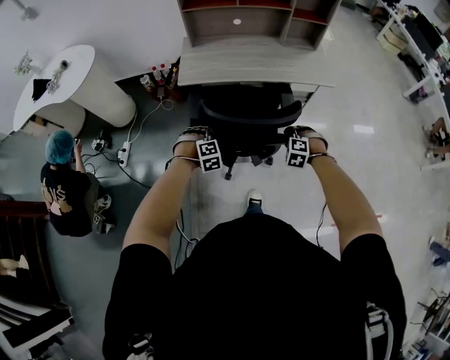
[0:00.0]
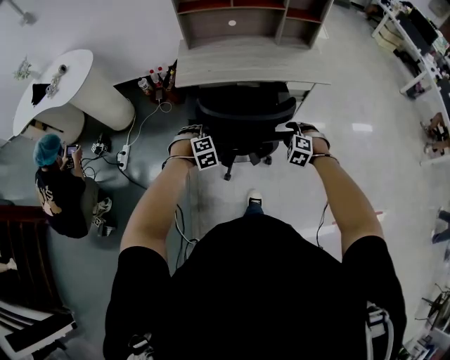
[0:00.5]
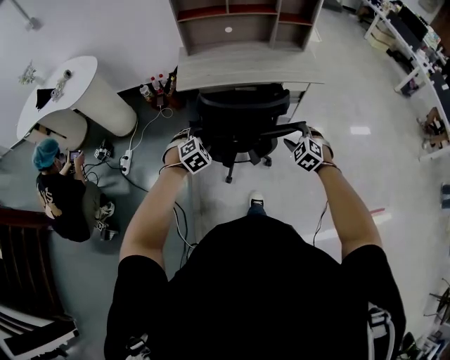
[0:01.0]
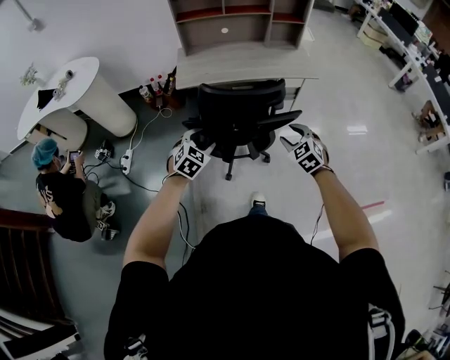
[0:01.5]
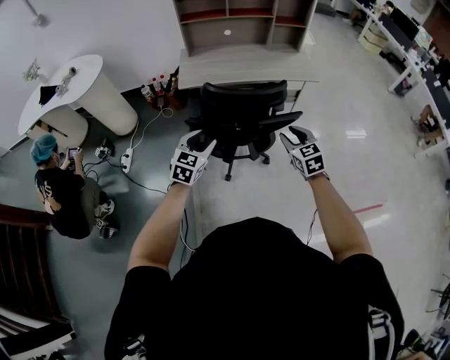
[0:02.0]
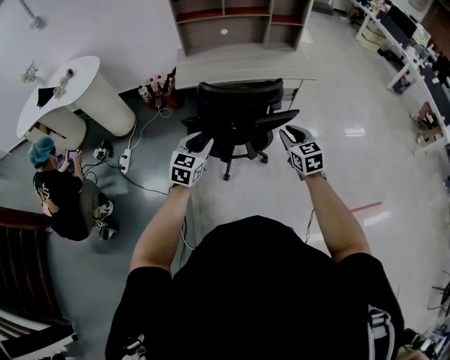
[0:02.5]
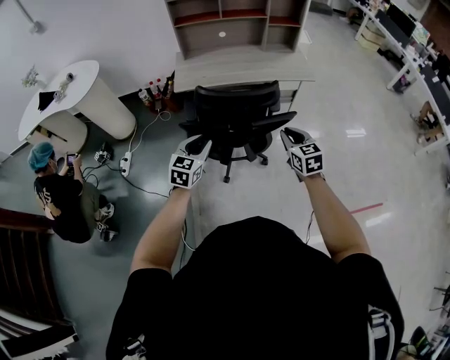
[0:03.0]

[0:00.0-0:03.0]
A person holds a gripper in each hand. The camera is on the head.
0:00.0 to 0:01.5: Both grippers move backward and upward, roughly 20 cm. The right gripper rotates about 50 degrees. Meanwhile the left gripper changes its angle by some 40 degrees, and opens its fingers.
0:01.5 to 0:03.0: The left gripper travels upward by some 5 cm, rotates some 30 degrees, and closes up. Meanwhile the right gripper rotates some 30 degrees, and closes.

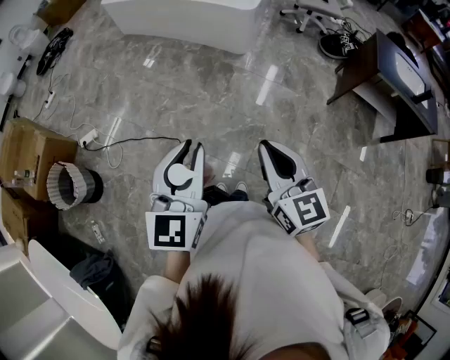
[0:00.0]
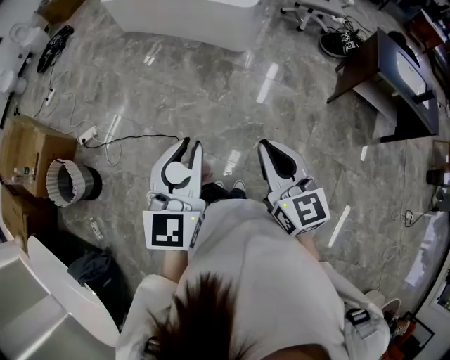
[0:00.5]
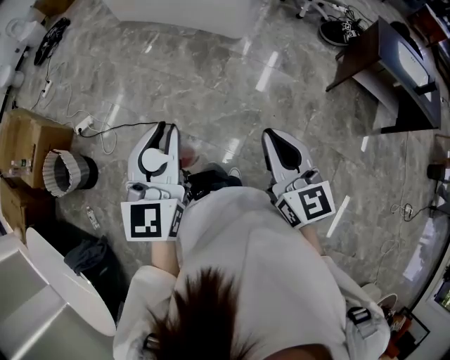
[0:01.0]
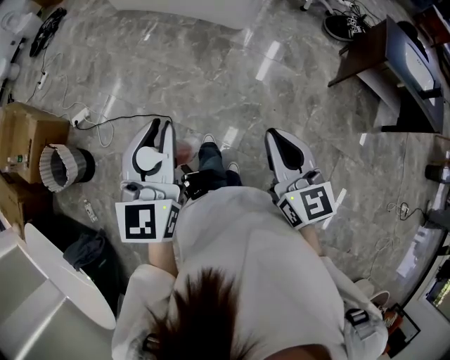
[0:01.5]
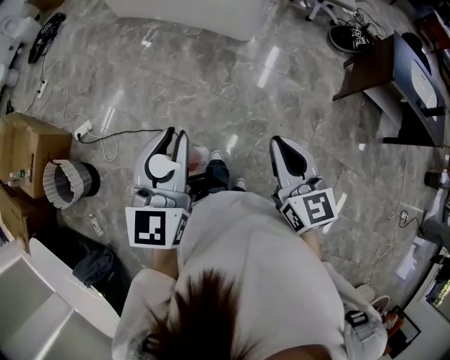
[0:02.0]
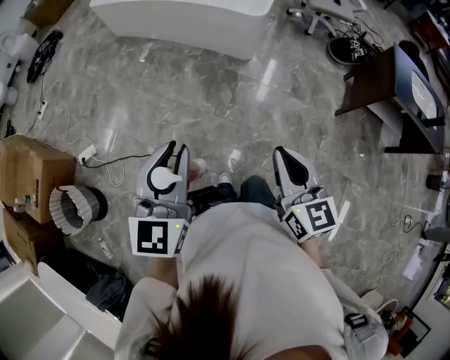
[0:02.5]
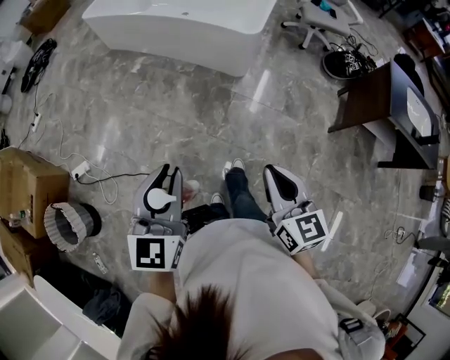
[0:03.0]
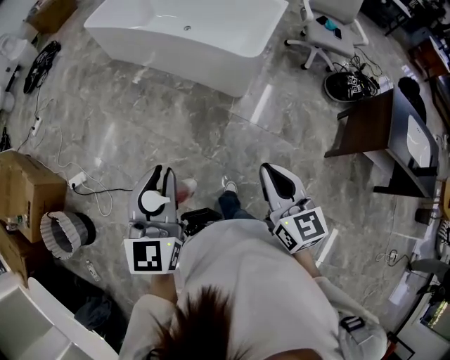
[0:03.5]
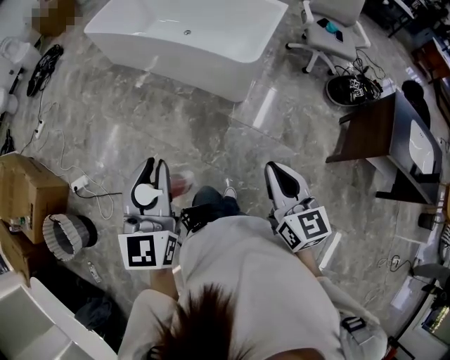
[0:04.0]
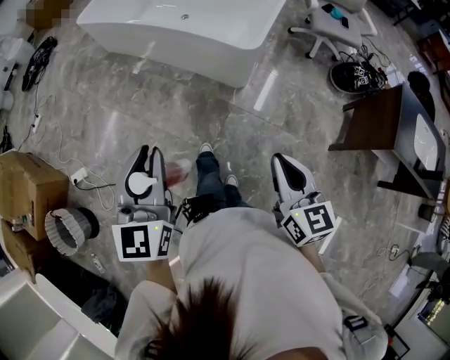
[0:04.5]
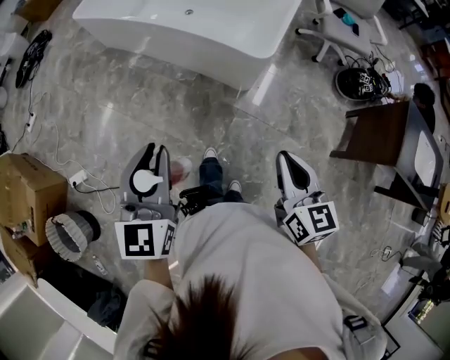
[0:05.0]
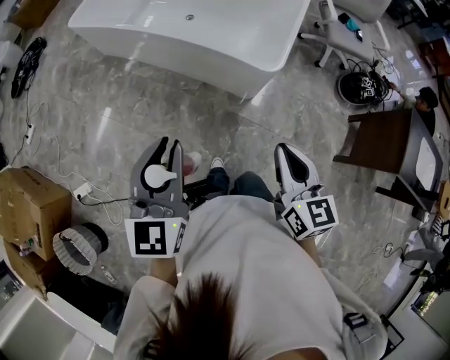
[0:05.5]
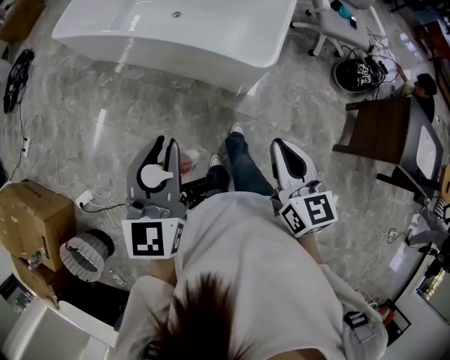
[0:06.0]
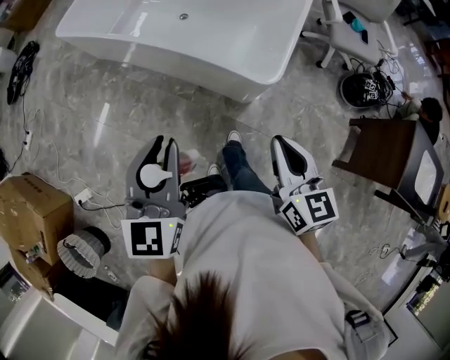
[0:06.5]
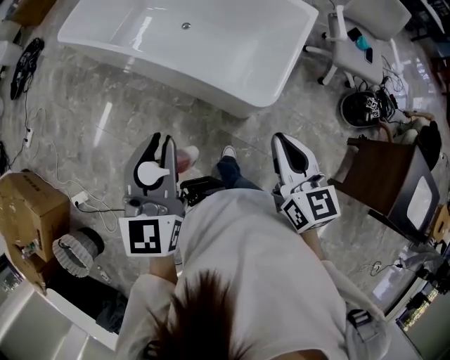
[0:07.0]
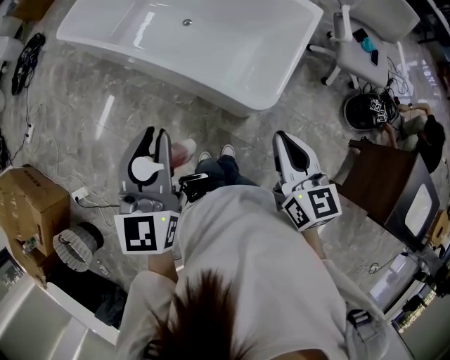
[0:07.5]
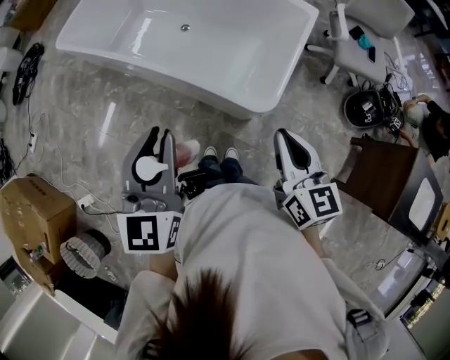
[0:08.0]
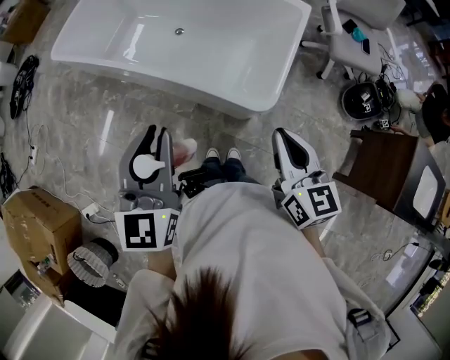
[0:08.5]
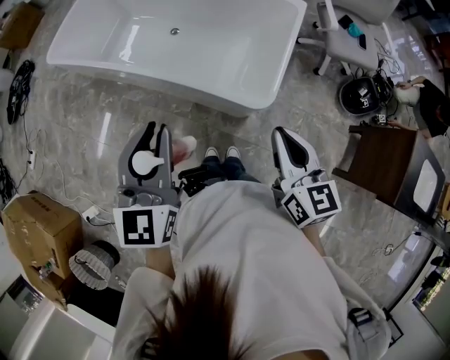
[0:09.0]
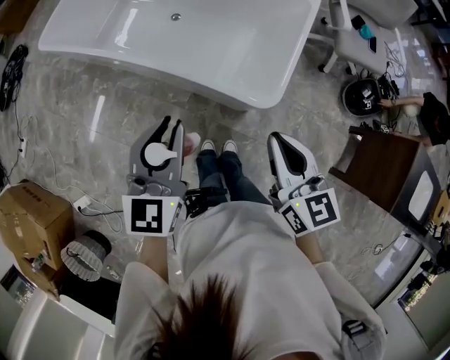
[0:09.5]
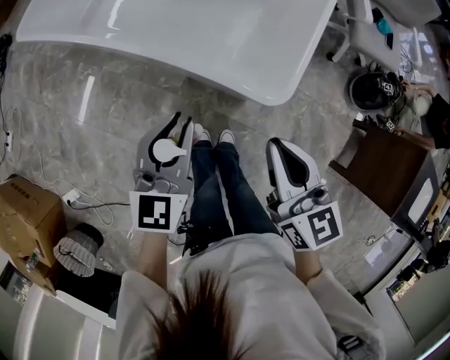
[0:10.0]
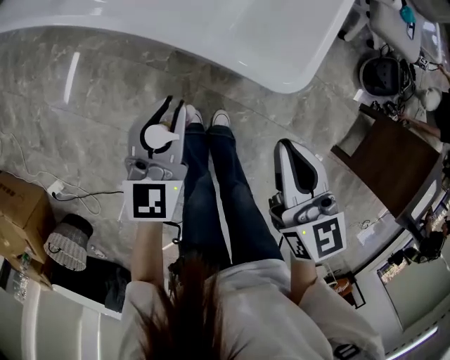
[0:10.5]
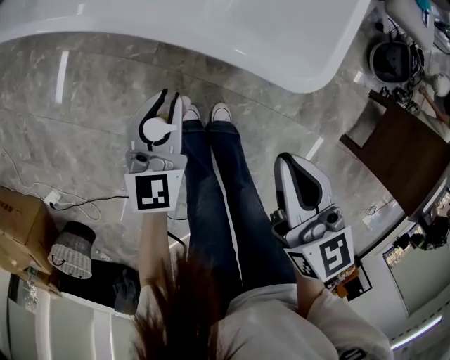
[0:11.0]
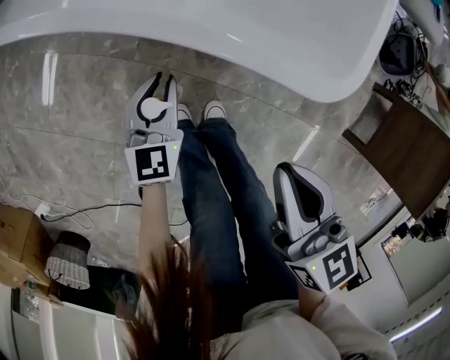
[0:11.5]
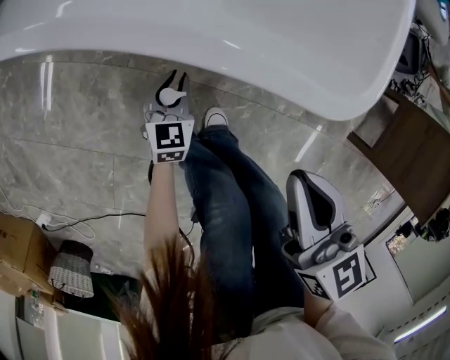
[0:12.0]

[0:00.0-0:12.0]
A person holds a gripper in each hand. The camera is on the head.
0:00.0 to 0:02.0: The grippers both shift forward by about 10 cm.
0:02.0 to 0:04.0: The two grippers go about 30 cm forward.
0:04.0 to 0:06.0: The two grippers go some 30 cm forward.
0:06.0 to 0:08.0: The two grippers go about 25 cm forward and to the right.
0:08.0 to 0:10.0: The left gripper moves downward and forward, approximately 20 cm, while the right gripper travels downward and to the left by about 10 cm.
0:10.0 to 0:12.0: The right gripper goes about 30 cm downward; the left gripper shifts approximately 60 cm downward, and swivels about 20 degrees.

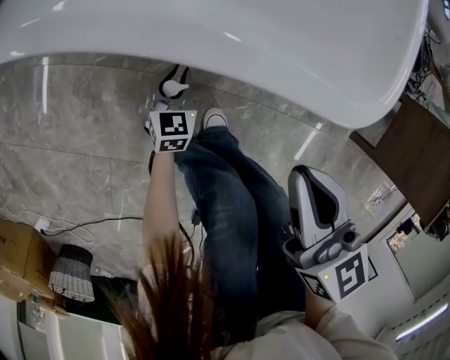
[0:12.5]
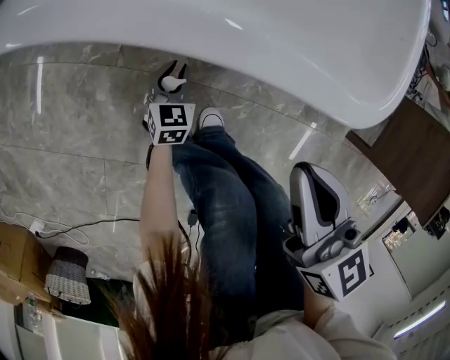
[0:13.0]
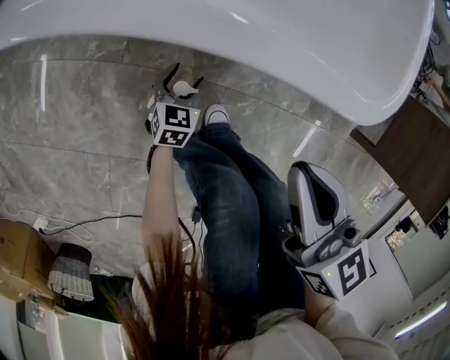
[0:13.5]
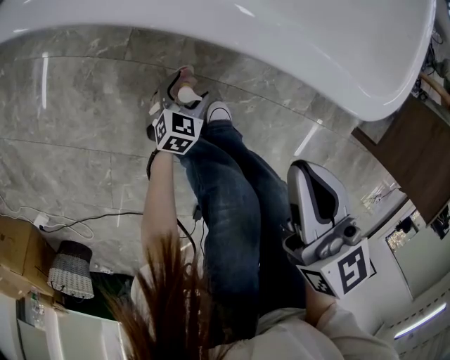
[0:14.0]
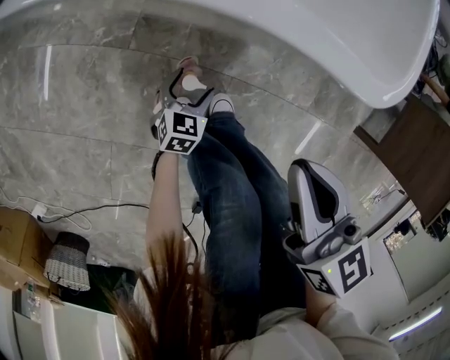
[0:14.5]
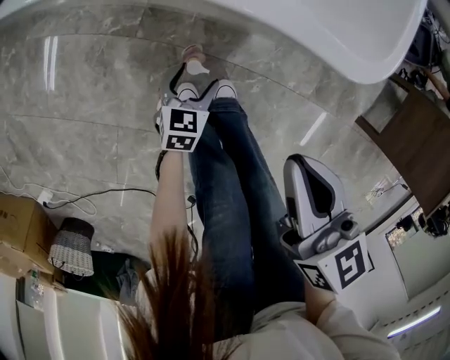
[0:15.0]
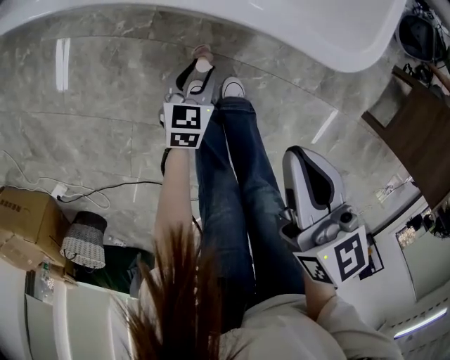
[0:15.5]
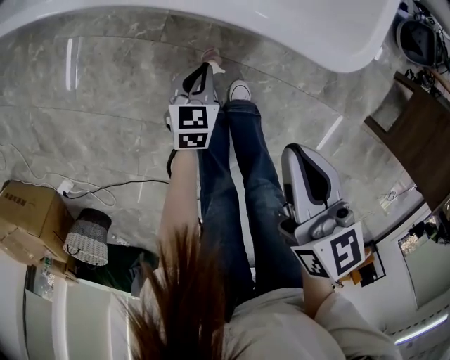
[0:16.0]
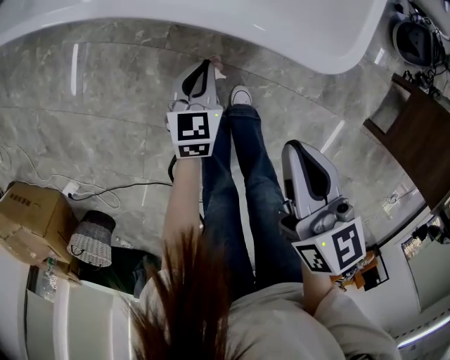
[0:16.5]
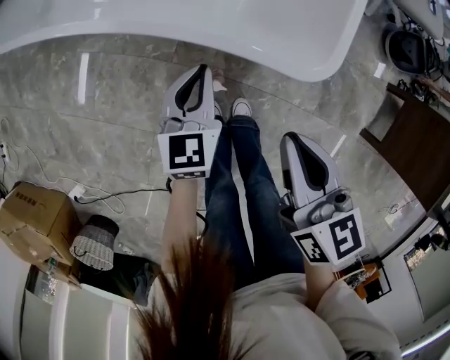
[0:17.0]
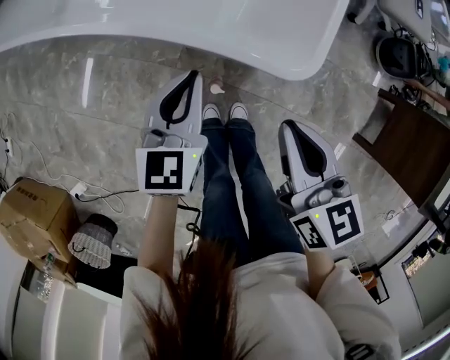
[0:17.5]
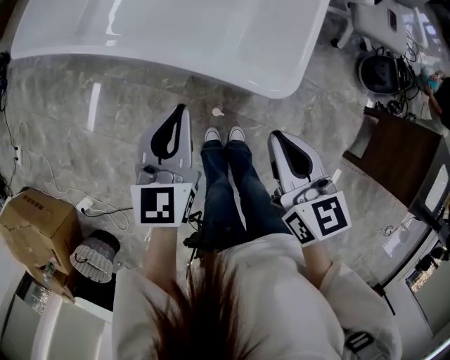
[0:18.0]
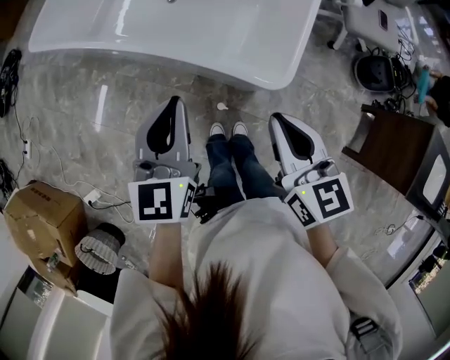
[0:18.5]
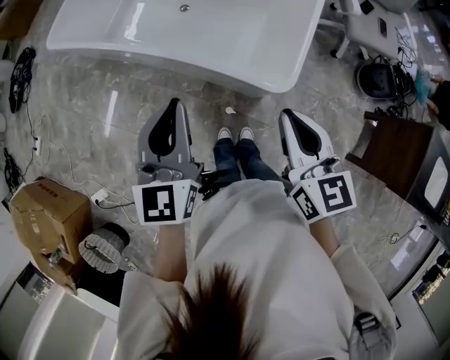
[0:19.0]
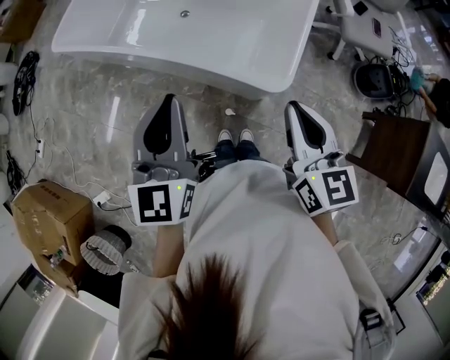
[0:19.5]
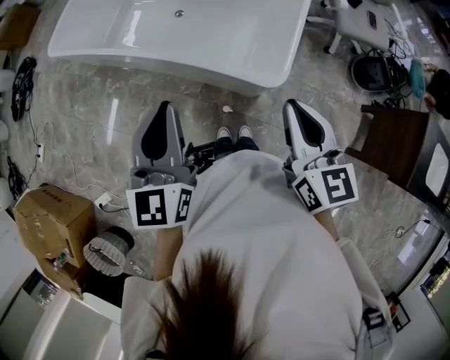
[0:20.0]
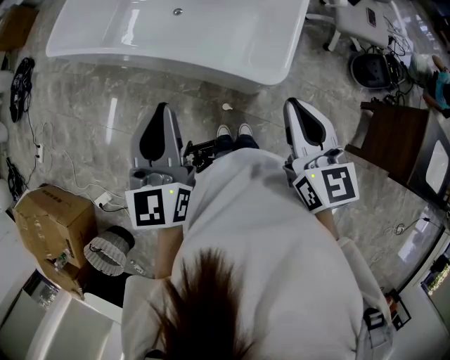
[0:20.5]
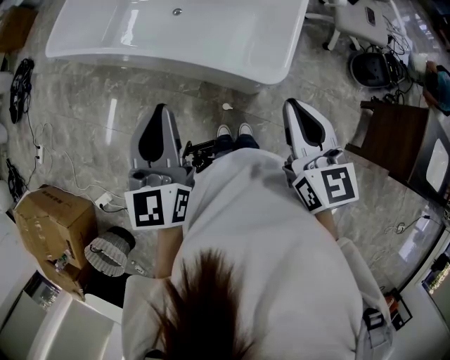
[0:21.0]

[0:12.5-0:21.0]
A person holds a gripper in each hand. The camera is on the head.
0:12.5 to 0:14.5: The left gripper moves backward, about 10 cm, and opens.
0:14.5 to 0:16.5: The left gripper is displaced upward by roughly 25 cm, and closes. The right gripper shifts roughly 10 cm upward.
0:16.5 to 0:19.0: The right gripper heads upward, covering about 35 cm, and swivels approximately 30 degrees; the left gripper travels upward by roughly 60 cm, and changes its angle by roughly 30 degrees.
0:19.0 to 0:21.0: The grippers make only small movements.

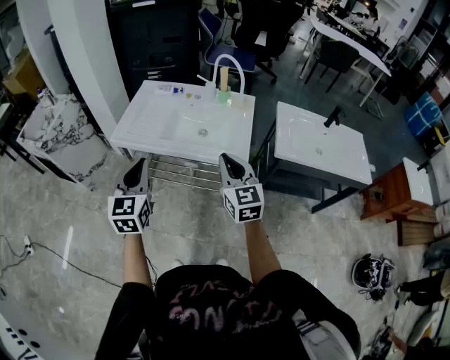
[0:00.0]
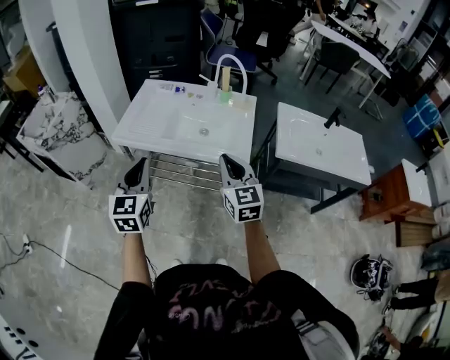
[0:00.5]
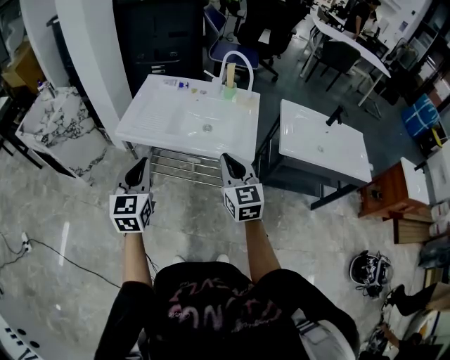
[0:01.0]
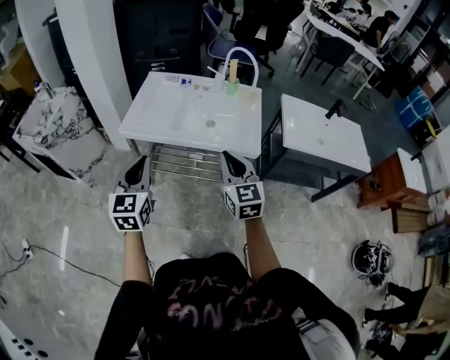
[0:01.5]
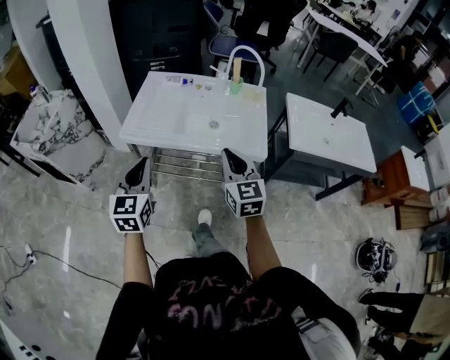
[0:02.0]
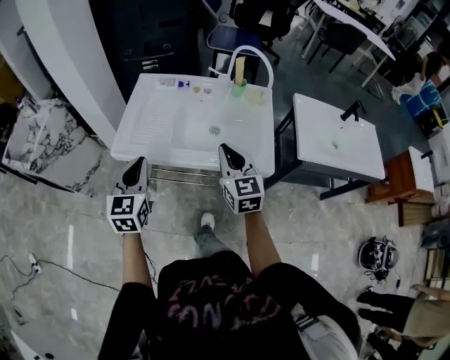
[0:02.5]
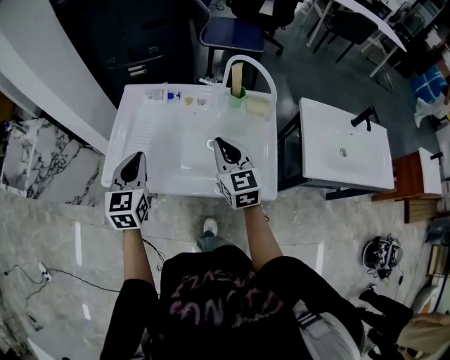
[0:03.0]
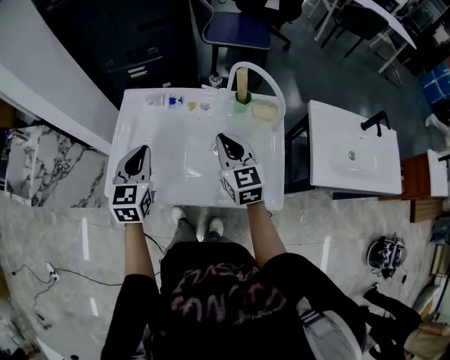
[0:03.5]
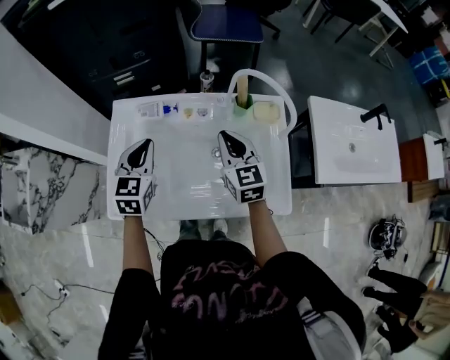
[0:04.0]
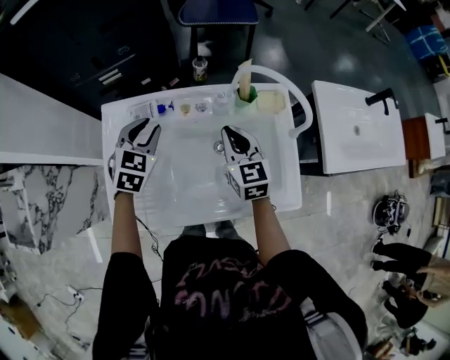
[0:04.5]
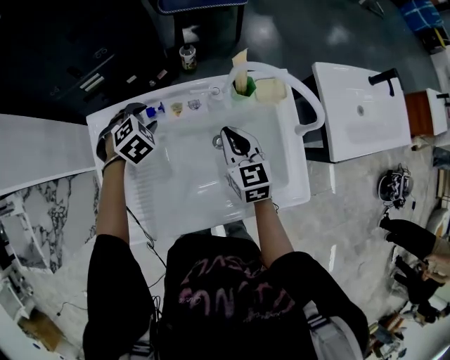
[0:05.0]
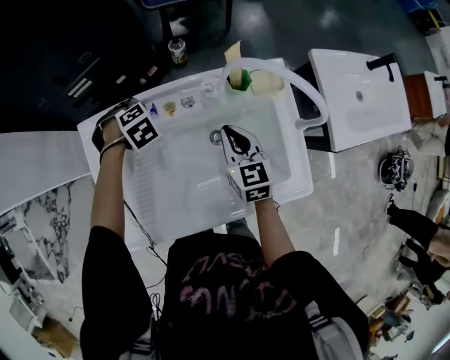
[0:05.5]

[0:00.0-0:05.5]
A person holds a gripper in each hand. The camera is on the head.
0:00.0 to 0:02.0: The grippers both shift to the left by approximately 10 cm.
0:02.0 to 0:03.5: Both grippers travel together forward, roughly 35 cm.
0:03.5 to 0:05.5: The left gripper shifts by roughly 35 cm, tips its fingers downward by some 60 degrees, and opens. Meanwhile the right gripper travels downward by roughly 15 cm, and rotates roughly 30 degrees.
